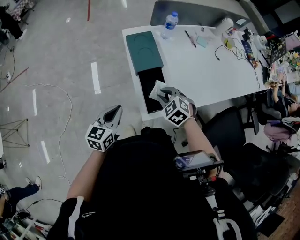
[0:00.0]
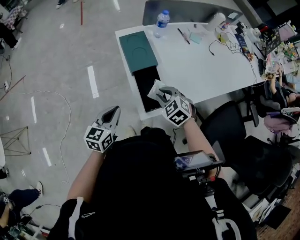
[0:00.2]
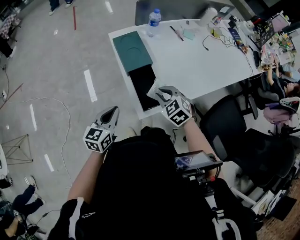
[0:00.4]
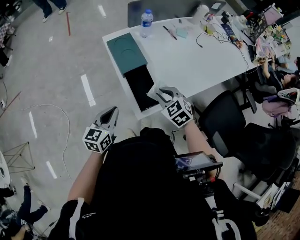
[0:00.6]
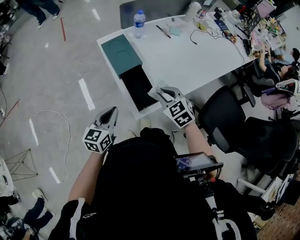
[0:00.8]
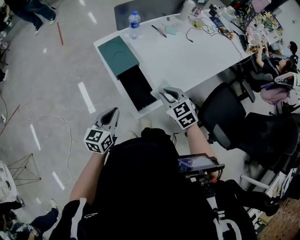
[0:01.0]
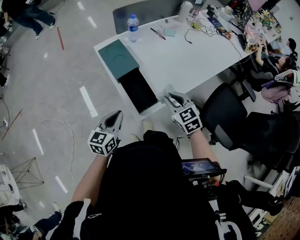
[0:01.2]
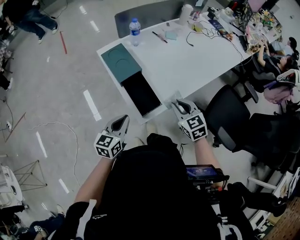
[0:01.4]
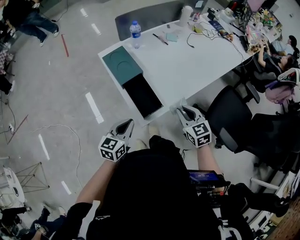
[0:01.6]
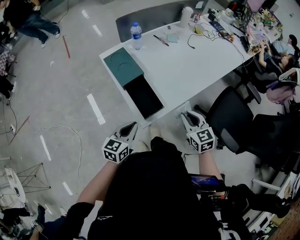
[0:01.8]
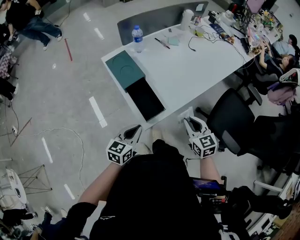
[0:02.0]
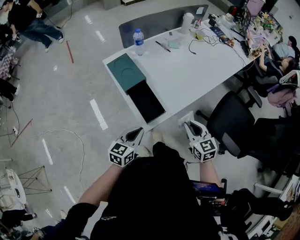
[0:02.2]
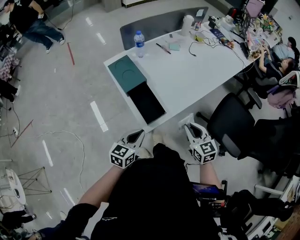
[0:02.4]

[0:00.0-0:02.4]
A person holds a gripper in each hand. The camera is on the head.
0:00.0 to 0:01.2: The left gripper shifts approximately 5 cm to the right. Meanwhile the right gripper moves to the right and upward, roughly 10 cm, and turns by approximately 40 degrees.
0:01.2 to 0:02.4: The right gripper goes approximately 10 cm backward and to the right, and swivels about 20 degrees. Meanwhile the left gripper is displaced to the right by roughly 5 cm.

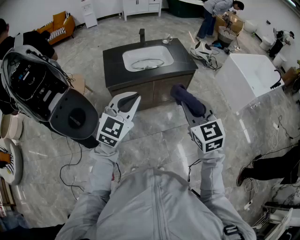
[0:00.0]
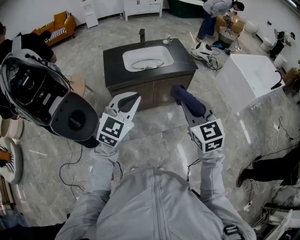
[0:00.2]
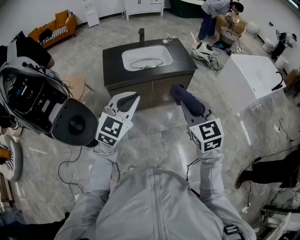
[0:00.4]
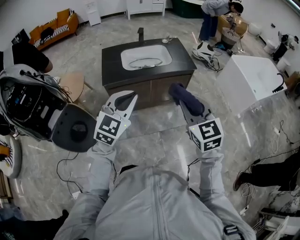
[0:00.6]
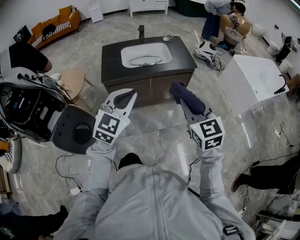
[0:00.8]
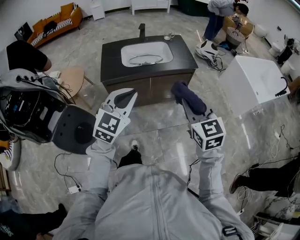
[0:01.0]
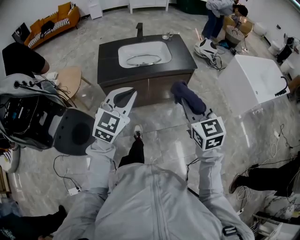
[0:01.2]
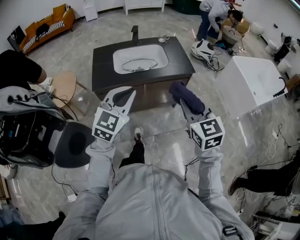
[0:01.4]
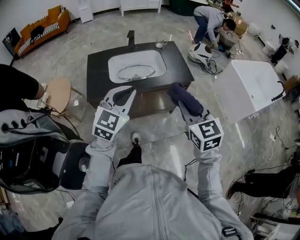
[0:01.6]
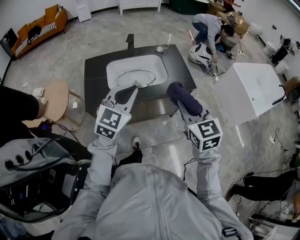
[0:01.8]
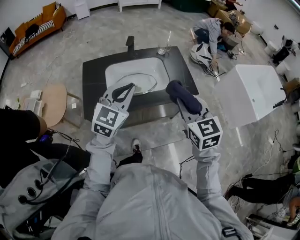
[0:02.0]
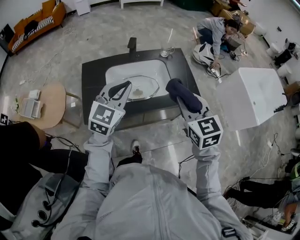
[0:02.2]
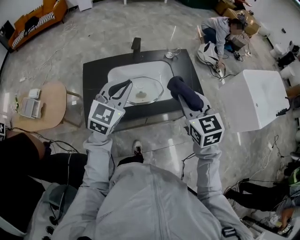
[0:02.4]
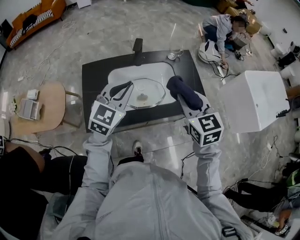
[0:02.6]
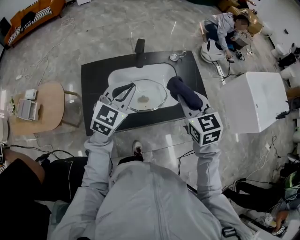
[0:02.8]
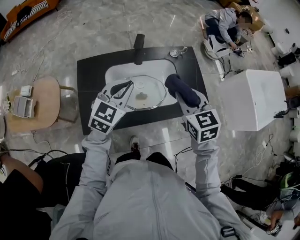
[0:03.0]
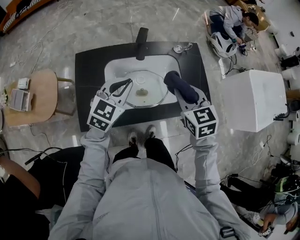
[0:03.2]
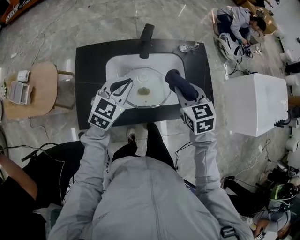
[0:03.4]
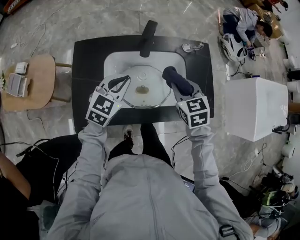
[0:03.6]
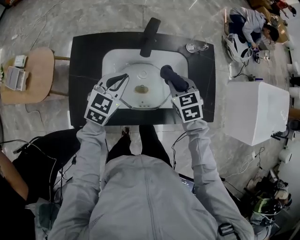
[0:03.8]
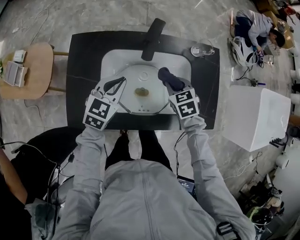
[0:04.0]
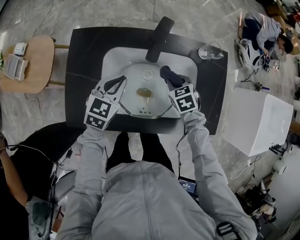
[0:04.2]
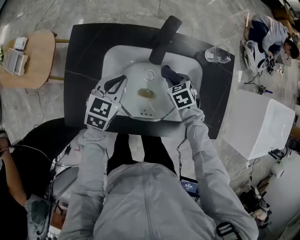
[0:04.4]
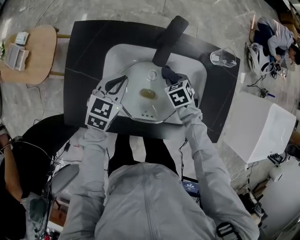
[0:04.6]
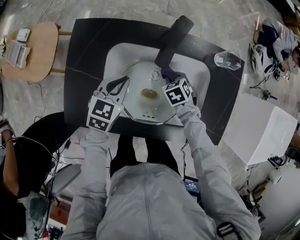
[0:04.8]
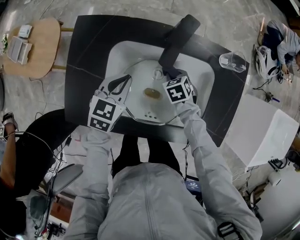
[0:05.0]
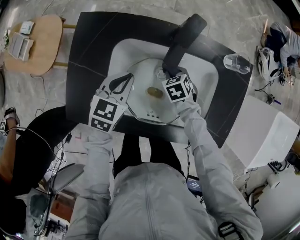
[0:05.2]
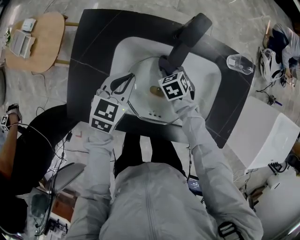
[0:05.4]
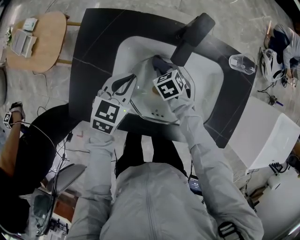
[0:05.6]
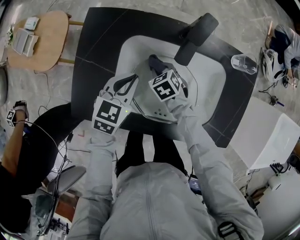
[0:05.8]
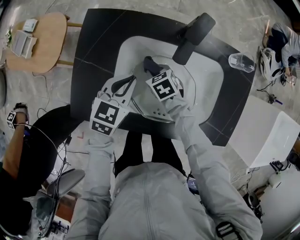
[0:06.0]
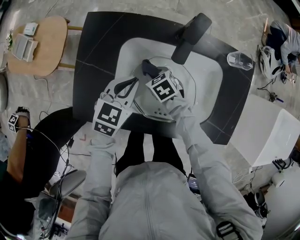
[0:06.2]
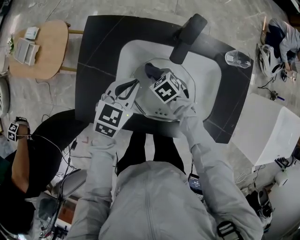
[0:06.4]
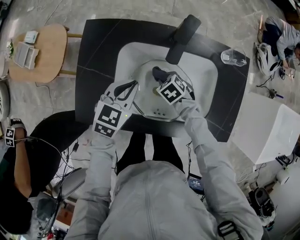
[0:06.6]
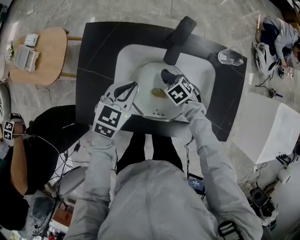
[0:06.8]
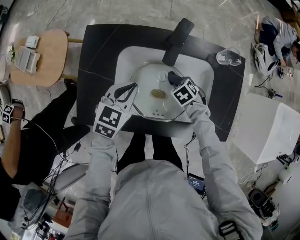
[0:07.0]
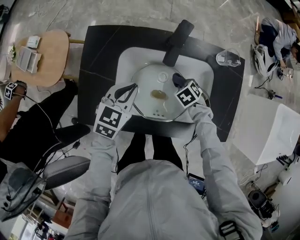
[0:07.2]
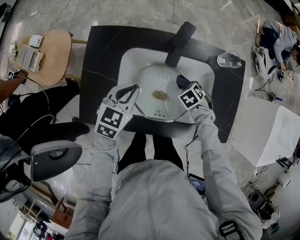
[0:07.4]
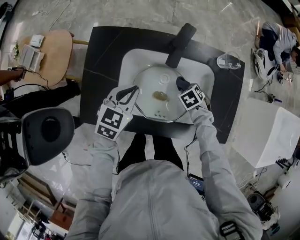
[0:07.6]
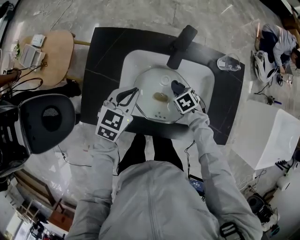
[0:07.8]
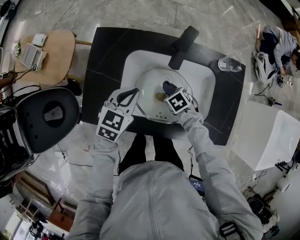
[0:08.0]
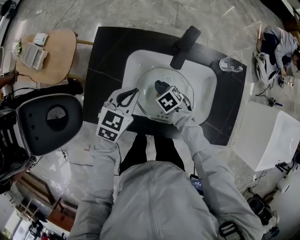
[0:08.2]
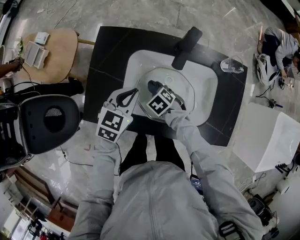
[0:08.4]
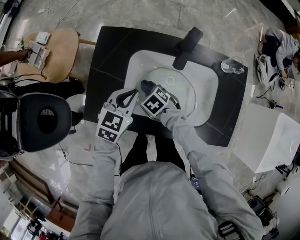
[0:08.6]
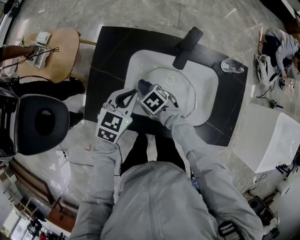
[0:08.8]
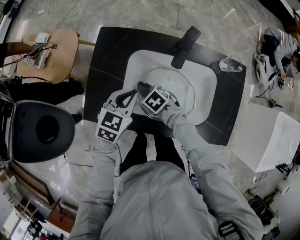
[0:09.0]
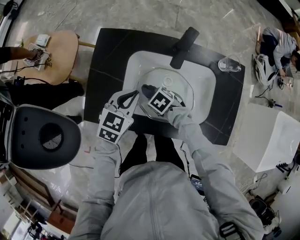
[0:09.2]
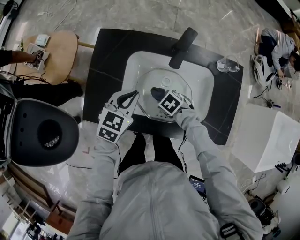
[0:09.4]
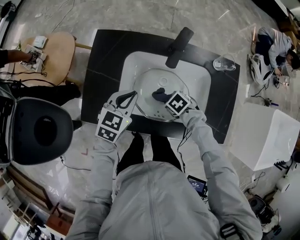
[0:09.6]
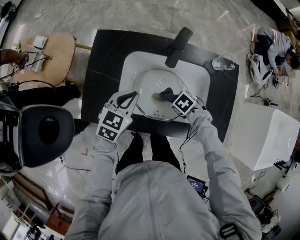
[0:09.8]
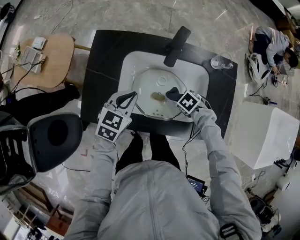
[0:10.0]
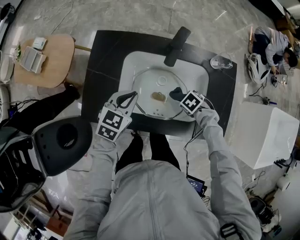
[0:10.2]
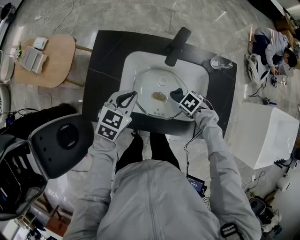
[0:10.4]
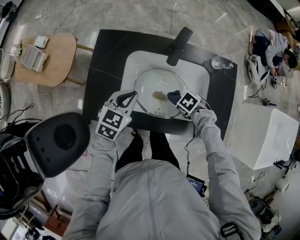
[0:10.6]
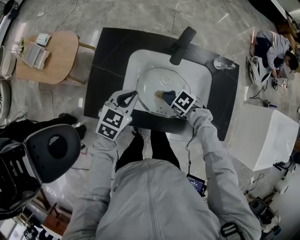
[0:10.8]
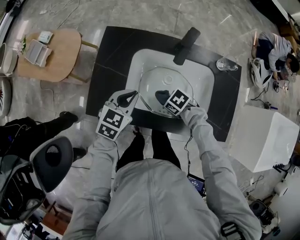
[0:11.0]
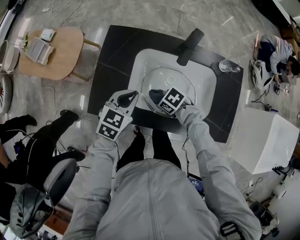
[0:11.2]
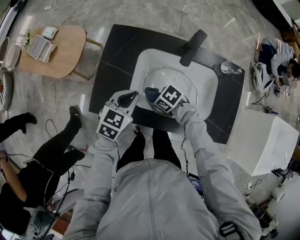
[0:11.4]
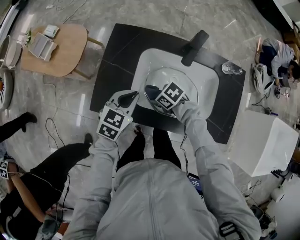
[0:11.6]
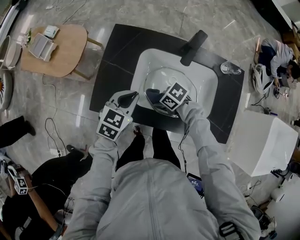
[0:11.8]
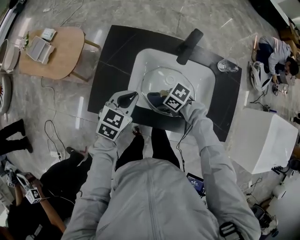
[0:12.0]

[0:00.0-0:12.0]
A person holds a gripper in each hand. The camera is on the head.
0:00.0 to 0:01.6: Both grippers move forward, roughly 20 cm.
0:01.6 to 0:03.0: The grippers both shift forward by some 30 cm.
0:03.0 to 0:04.4: The right gripper heads downward and forward, covering approximately 35 cm, and tilts its fingers roughly 30 degrees downward. Meanwhile the left gripper travels downward by approximately 20 cm, and rotates some 30 degrees.
0:04.4 to 0:06.0: The right gripper travels to the left by about 15 cm.
0:06.0 to 0:07.6: The right gripper moves some 20 cm, and turns by approximately 20 degrees.
0:07.6 to 0:09.0: The right gripper shifts by some 25 cm, and swivels some 30 degrees.
0:09.0 to 0:10.4: The right gripper moves some 25 cm, and swivels about 20 degrees.
0:10.4 to 0:12.0: The right gripper changes place by about 20 cm, and tilts its fingers about 30 degrees upward.

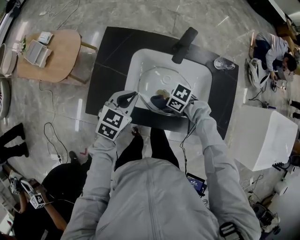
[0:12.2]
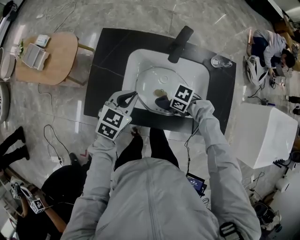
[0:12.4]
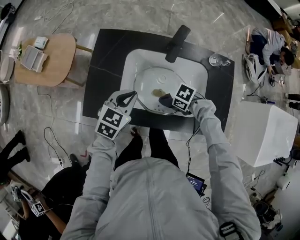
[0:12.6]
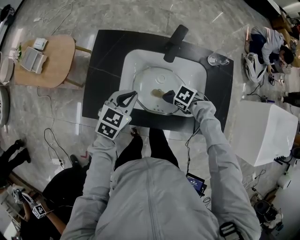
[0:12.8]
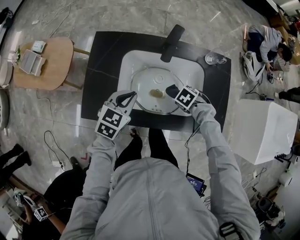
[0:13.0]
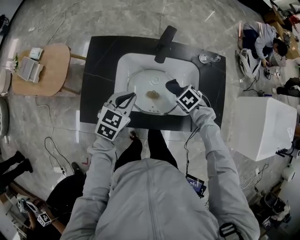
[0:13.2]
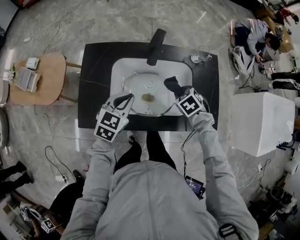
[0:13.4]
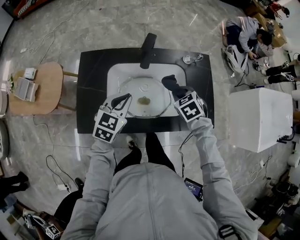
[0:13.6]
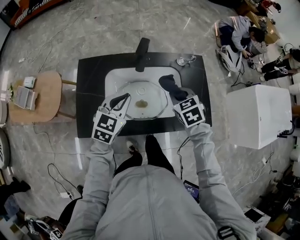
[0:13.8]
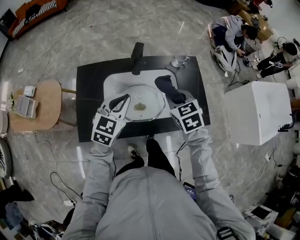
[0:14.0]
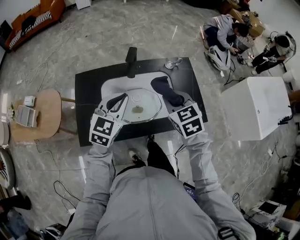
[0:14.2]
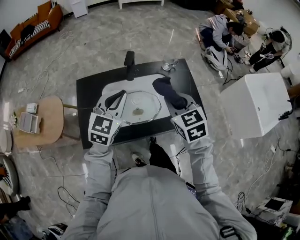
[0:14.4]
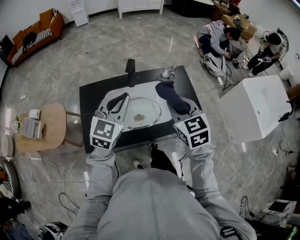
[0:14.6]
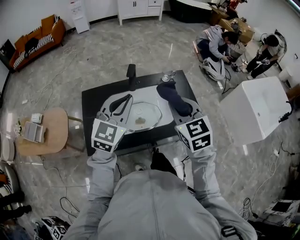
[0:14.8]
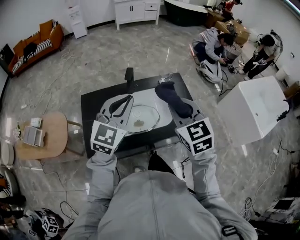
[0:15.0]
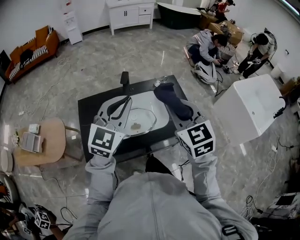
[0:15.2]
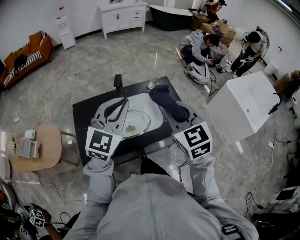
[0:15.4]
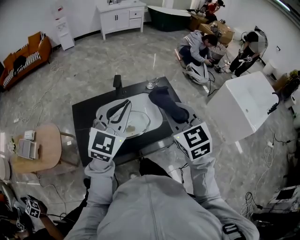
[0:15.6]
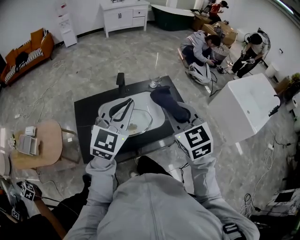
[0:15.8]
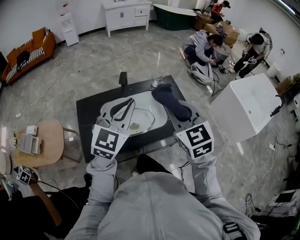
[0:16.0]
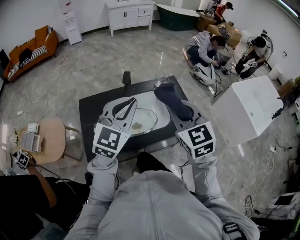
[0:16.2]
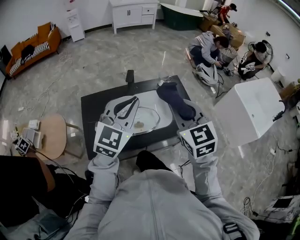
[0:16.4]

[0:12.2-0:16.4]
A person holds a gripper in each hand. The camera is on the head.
0:12.2 to 0:13.6: The right gripper changes place by about 20 cm, and rotates approximately 60 degrees. Meanwhile the left gripper shifts by roughly 10 cm.
0:13.6 to 0:15.0: The left gripper heads upward, covering about 25 cm, and turns by about 30 degrees. The right gripper is displaced upward and backward by some 30 cm, and angles its fingers upward, by about 40 degrees.
0:15.0 to 0:16.4: The grippers stay close to where they were, moving slightly.

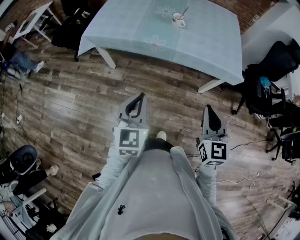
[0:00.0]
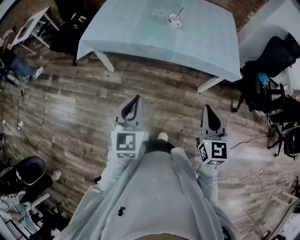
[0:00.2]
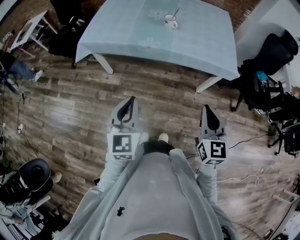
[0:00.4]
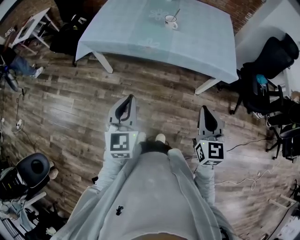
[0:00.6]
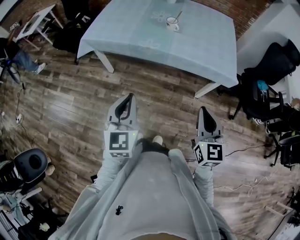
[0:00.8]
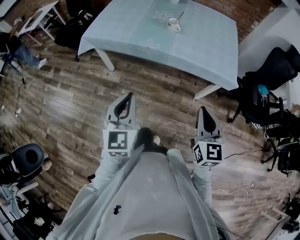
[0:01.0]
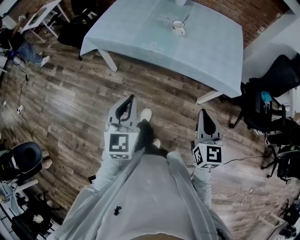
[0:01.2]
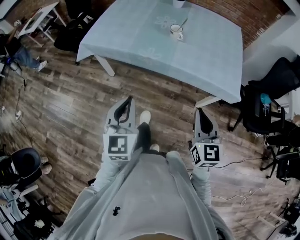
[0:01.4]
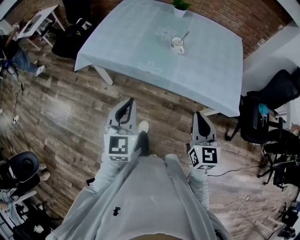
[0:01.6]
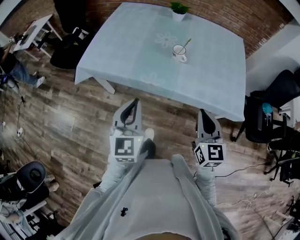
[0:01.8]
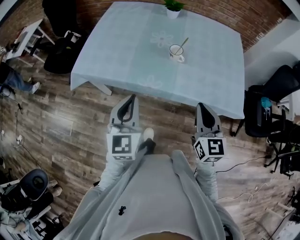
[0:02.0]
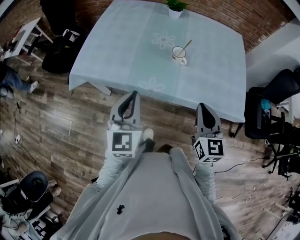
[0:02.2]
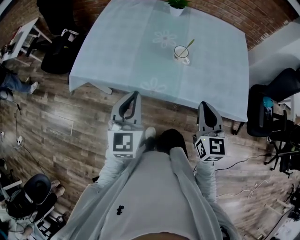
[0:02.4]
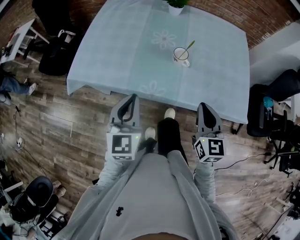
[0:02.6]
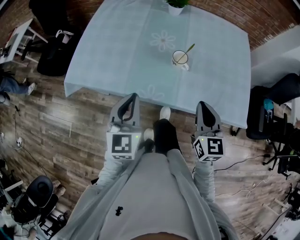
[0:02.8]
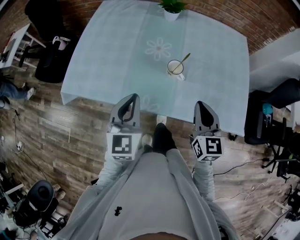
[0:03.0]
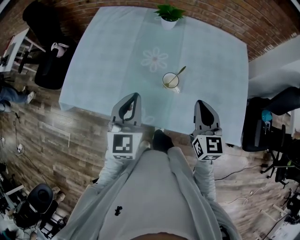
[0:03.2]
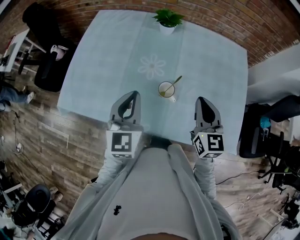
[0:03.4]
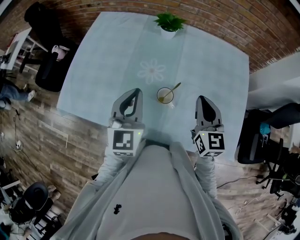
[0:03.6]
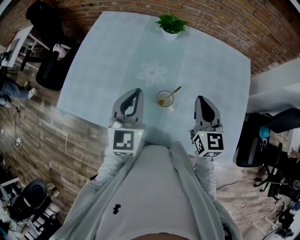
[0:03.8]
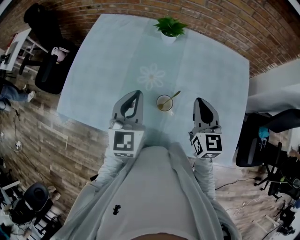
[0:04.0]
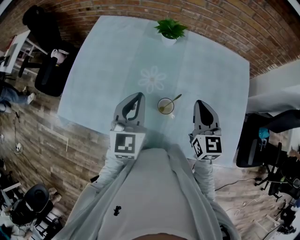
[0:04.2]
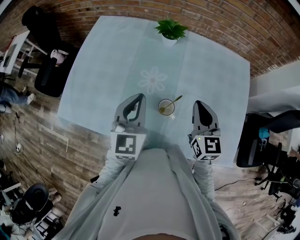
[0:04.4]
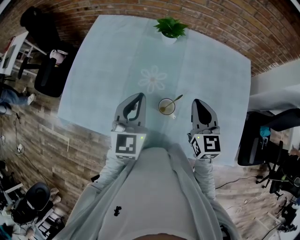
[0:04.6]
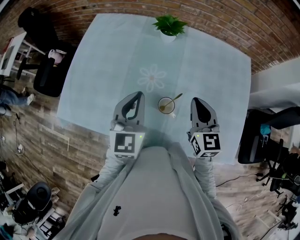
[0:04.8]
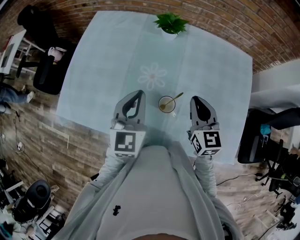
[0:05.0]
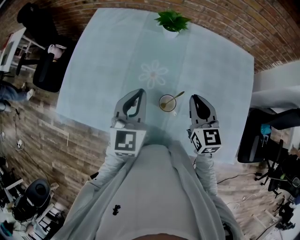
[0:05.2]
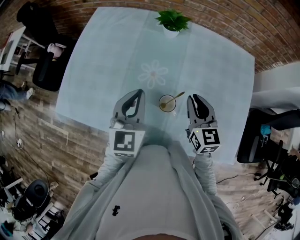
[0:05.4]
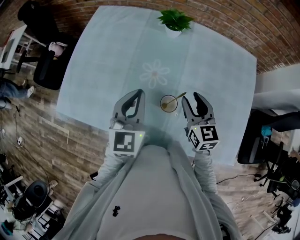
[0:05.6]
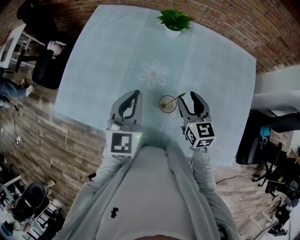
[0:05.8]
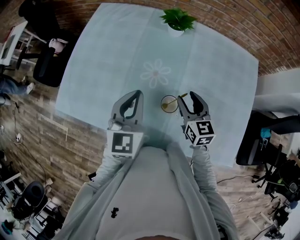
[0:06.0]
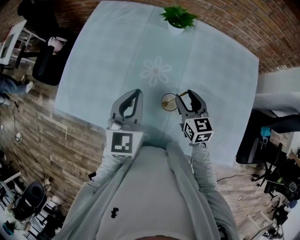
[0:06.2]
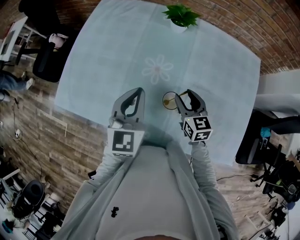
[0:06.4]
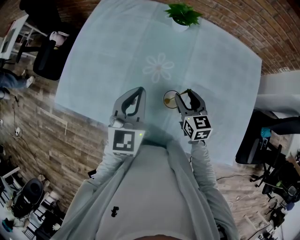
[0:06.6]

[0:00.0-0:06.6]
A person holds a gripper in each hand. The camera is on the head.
0:00.0 to 0:01.6: The two grippers go roughly 15 cm forward.
0:01.6 to 0:03.2: The two grippers go some 35 cm forward.
0:03.2 to 0:05.0: Both grippers travel together forward, roughly 15 cm.
0:05.0 to 0:06.6: The right gripper goes approximately 10 cm downward, and opens up.
